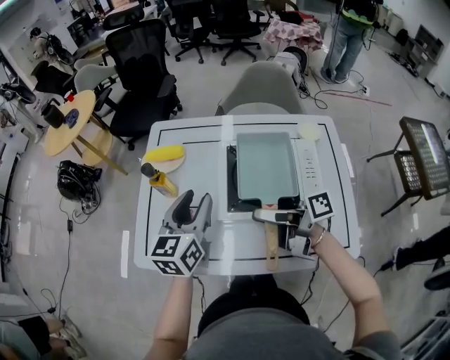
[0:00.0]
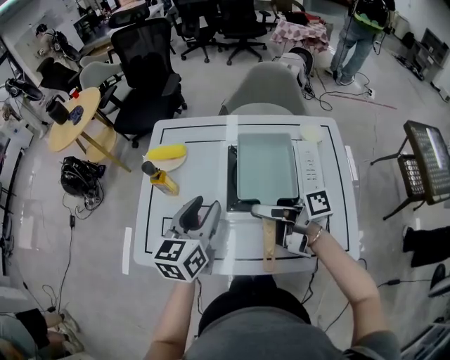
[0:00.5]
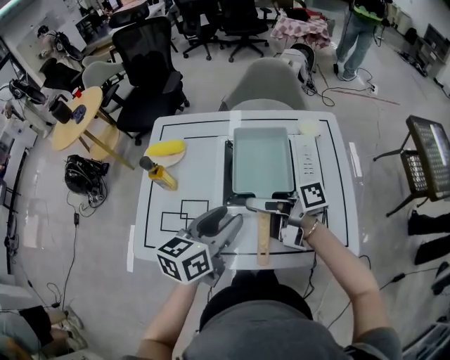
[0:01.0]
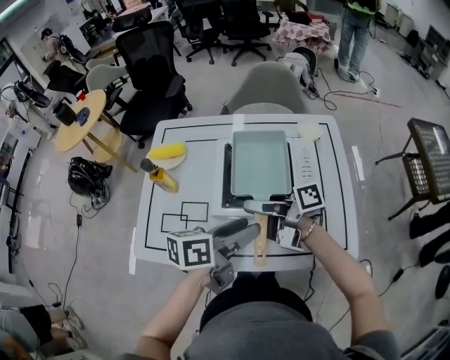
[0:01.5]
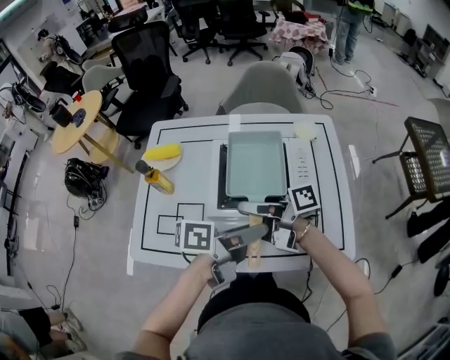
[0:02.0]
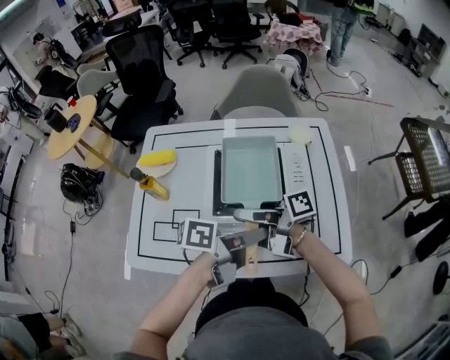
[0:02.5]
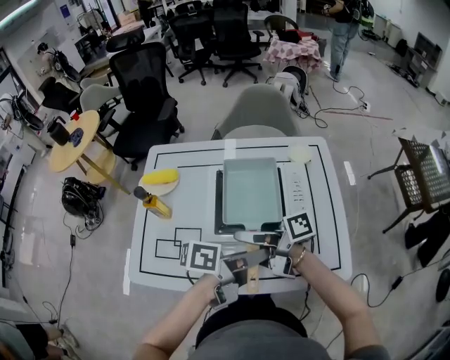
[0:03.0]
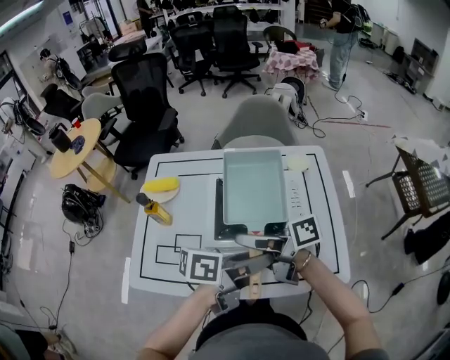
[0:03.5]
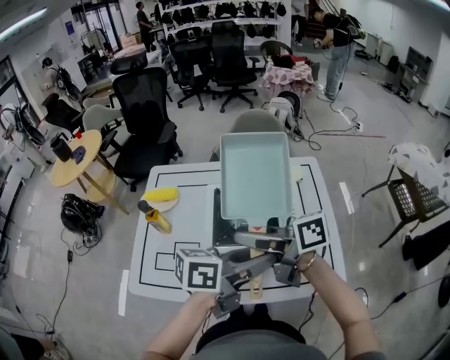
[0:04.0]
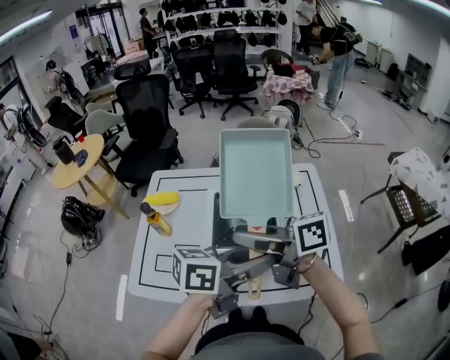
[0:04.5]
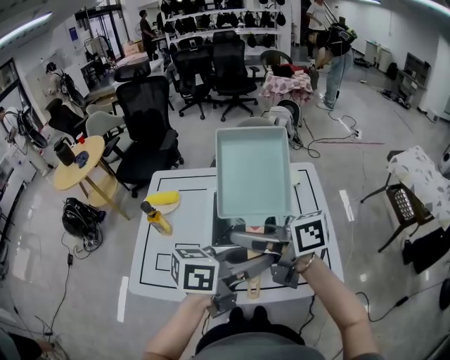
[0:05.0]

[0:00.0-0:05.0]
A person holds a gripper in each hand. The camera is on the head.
0:00.0 to 0:02.5: The right gripper closes up. Meanwhile the left gripper shifts by roughly 20 cm, and swivels some 80 degrees.
0:02.5 to 0:05.0: The grippers both shift upward by roughly 15 cm. The right gripper changes its angle by approximately 40 degrees; the left gripper changes its angle by some 40 degrees.

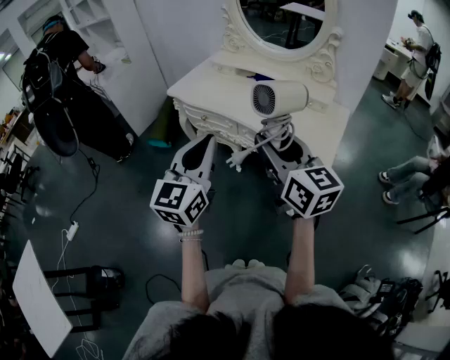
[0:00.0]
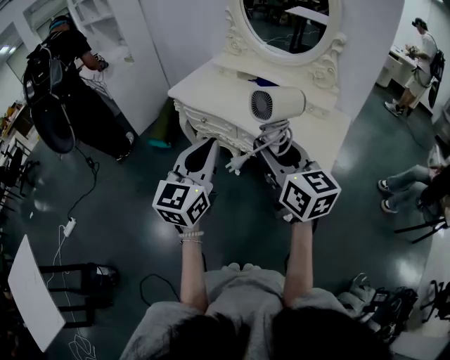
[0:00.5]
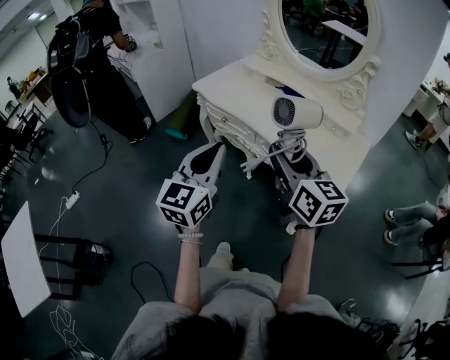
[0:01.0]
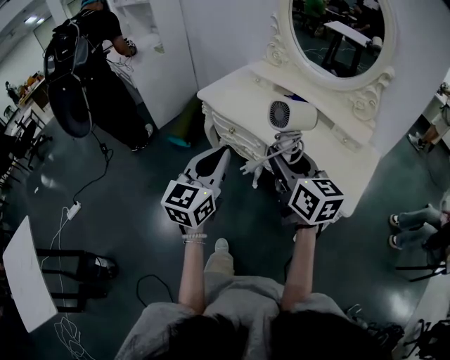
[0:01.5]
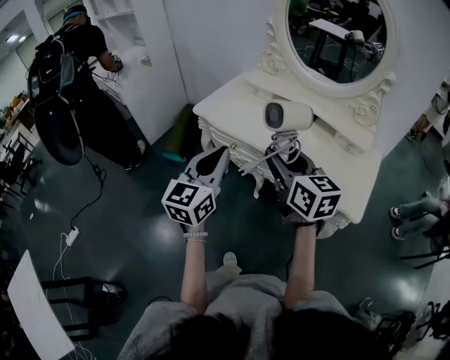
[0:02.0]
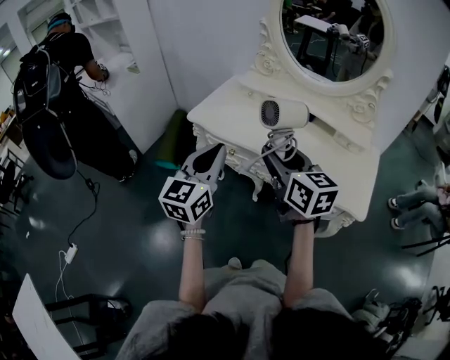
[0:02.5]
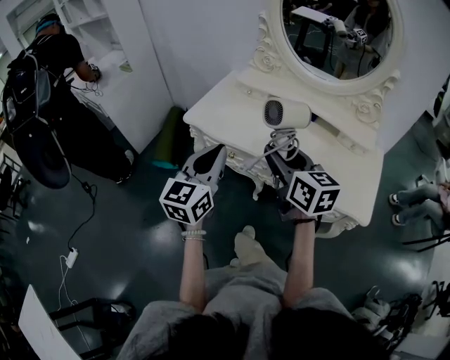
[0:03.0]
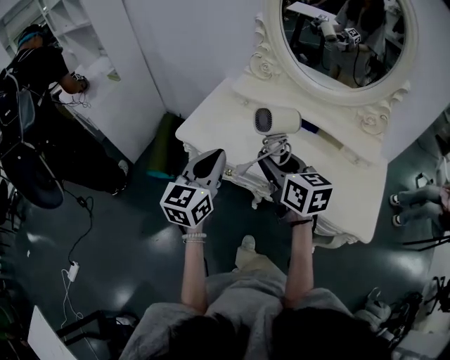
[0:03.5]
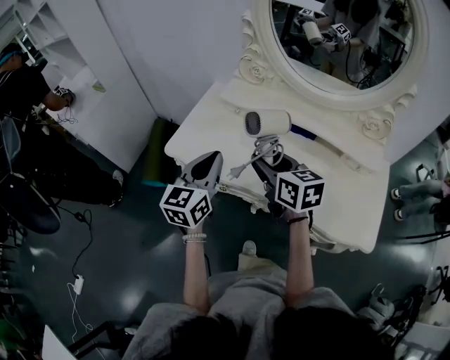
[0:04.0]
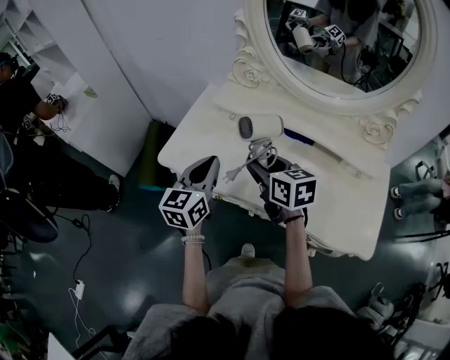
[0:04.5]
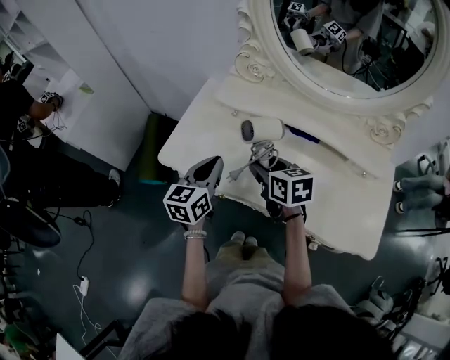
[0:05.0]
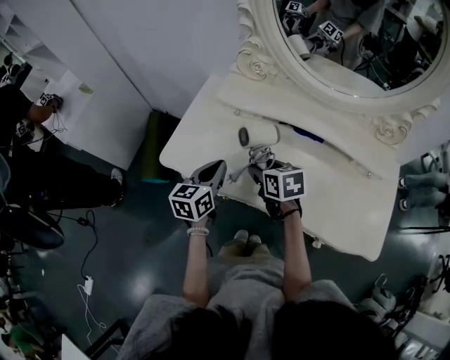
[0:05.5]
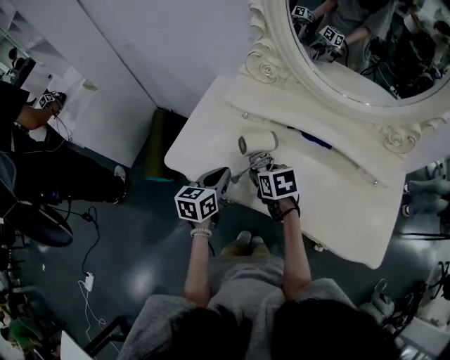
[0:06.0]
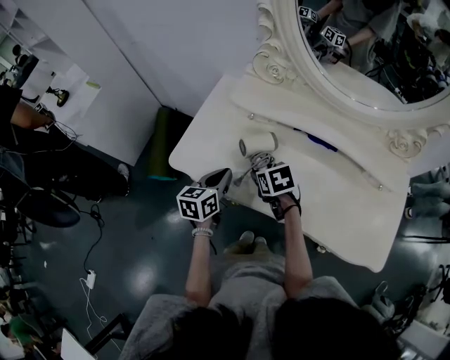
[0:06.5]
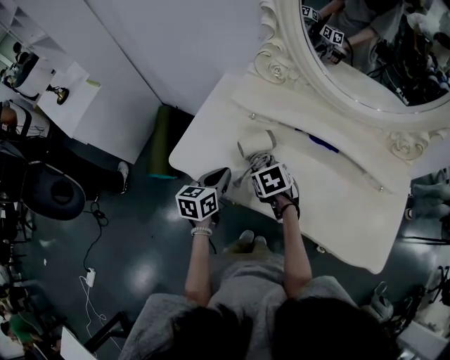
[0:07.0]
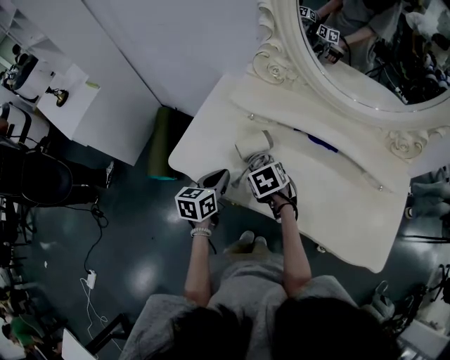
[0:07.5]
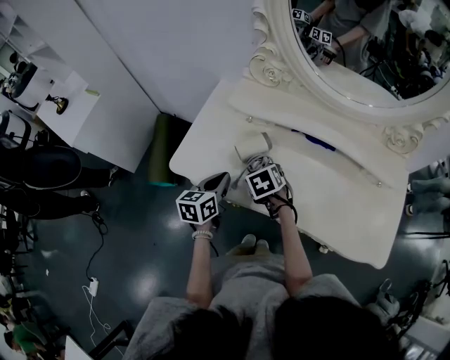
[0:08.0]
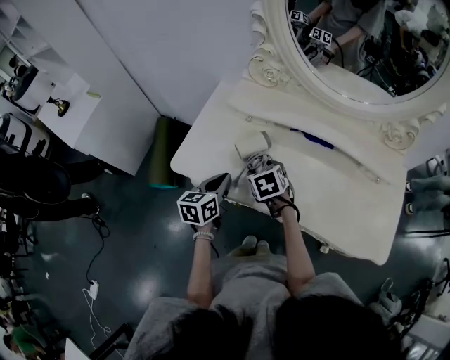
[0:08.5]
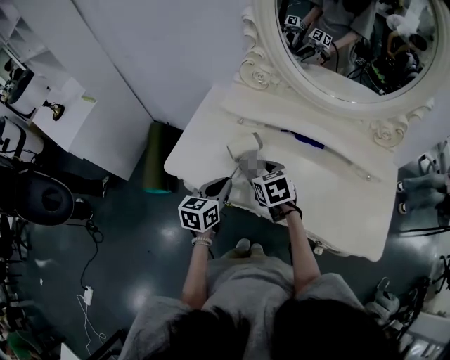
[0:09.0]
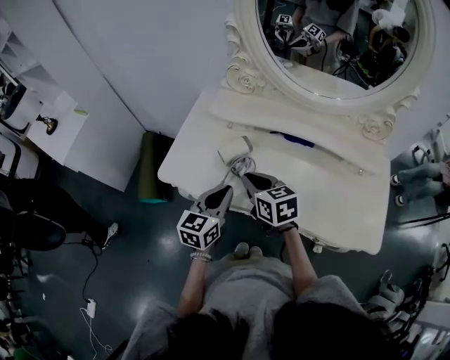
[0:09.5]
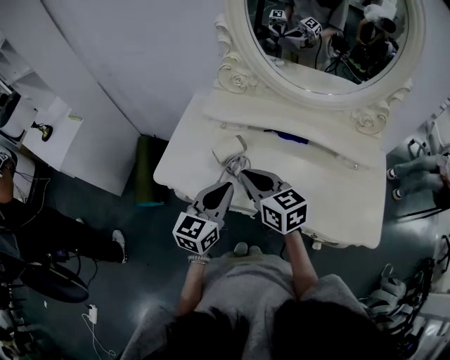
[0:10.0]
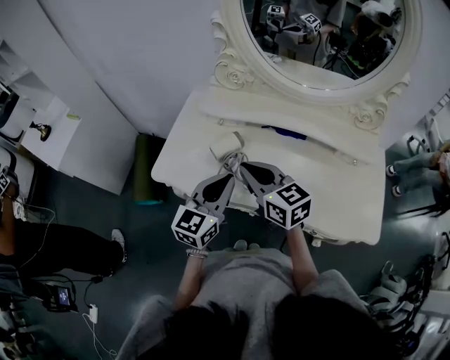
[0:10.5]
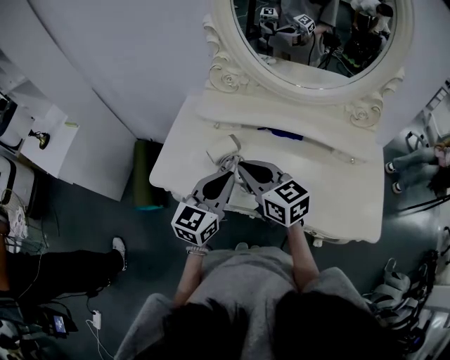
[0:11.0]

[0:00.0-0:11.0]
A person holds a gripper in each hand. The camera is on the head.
0:00.0 to 0:02.0: Both grippers travel together forward and to the left, some 20 cm.
0:02.0 to 0:03.5: The two grippers go about 20 cm forward.
0:03.5 to 0:05.5: The left gripper shifts roughly 25 cm forward and downward, and turns by roughly 20 degrees, while the right gripper travels downward and forward by about 25 cm, and swivels roughly 30 degrees.
0:05.5 to 0:07.5: The grippers both shift downward by about 5 cm. The right gripper turns by about 30 degrees.
0:07.5 to 0:09.0: The left gripper moves about 5 cm, while the right gripper heads upward, covering about 5 cm.
0:09.0 to 0:11.0: The left gripper shifts about 15 cm upward and to the right, and turns by roughly 30 degrees; the right gripper is displaced upward by roughly 15 cm, tilts its fingers some 30 degrees upward, and closes.

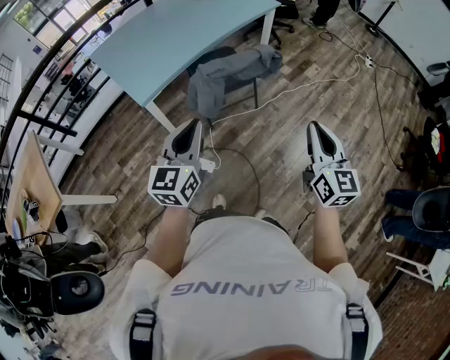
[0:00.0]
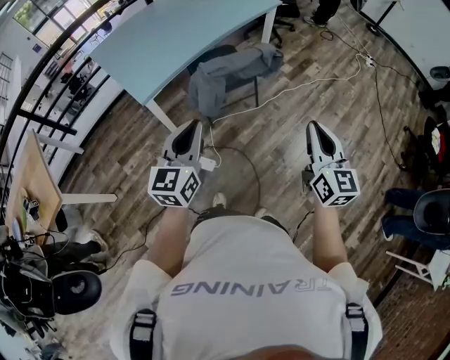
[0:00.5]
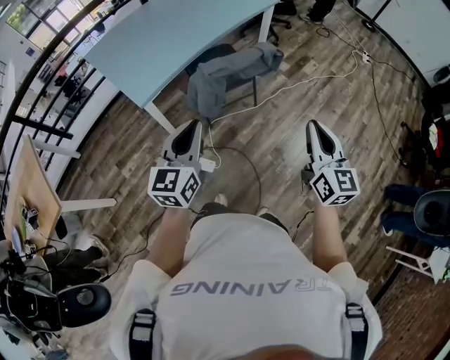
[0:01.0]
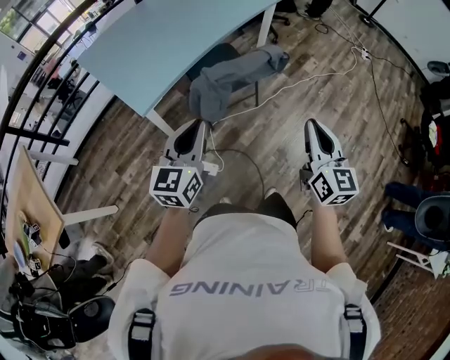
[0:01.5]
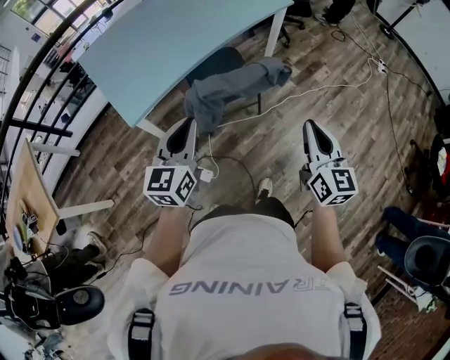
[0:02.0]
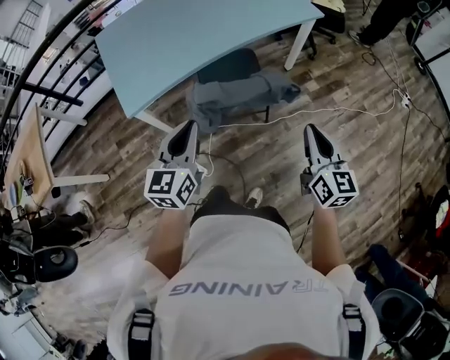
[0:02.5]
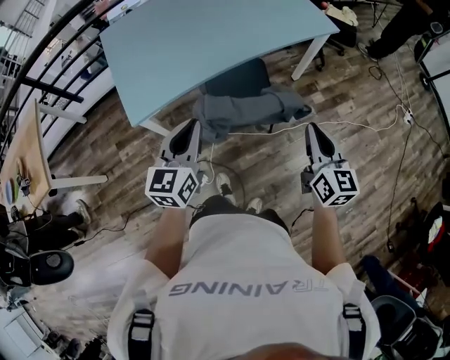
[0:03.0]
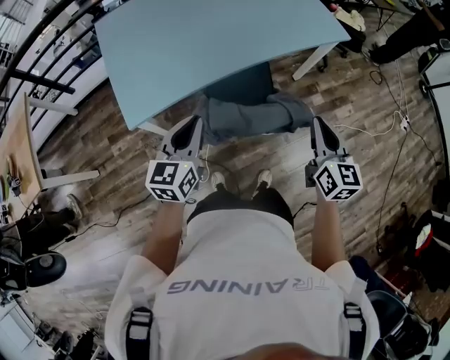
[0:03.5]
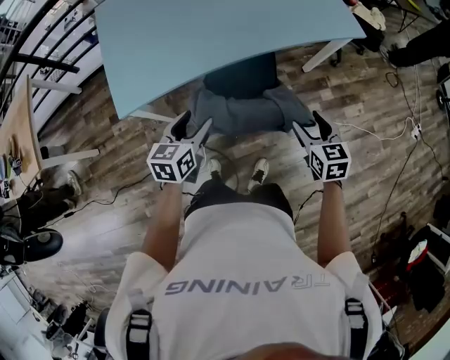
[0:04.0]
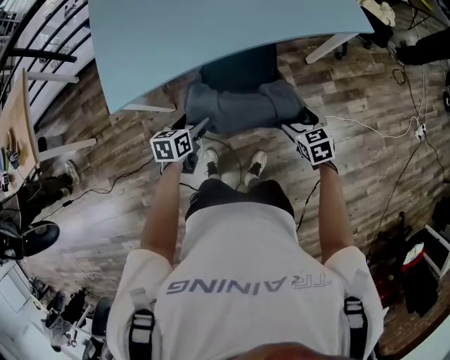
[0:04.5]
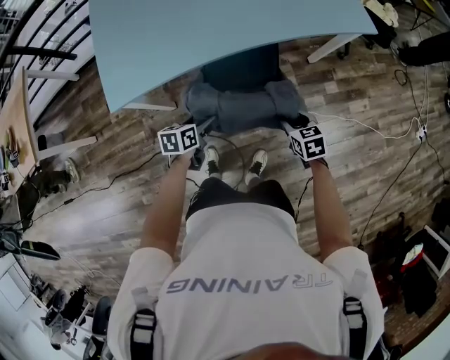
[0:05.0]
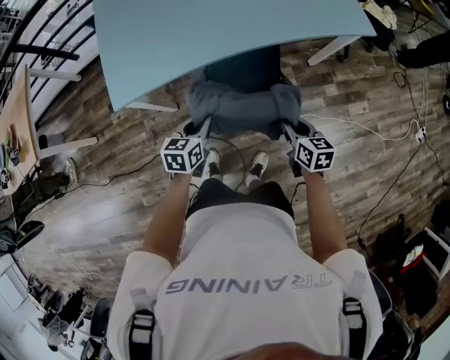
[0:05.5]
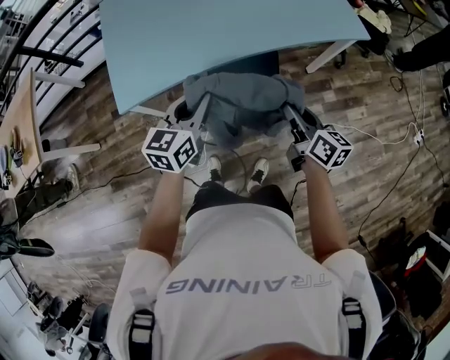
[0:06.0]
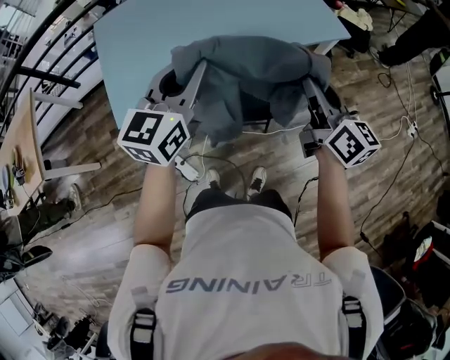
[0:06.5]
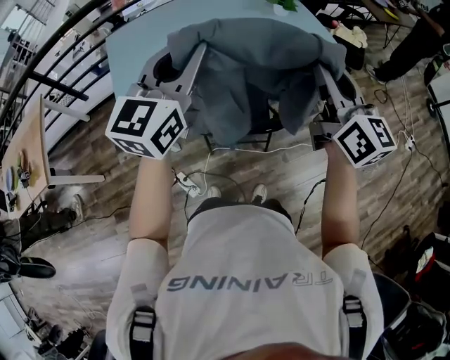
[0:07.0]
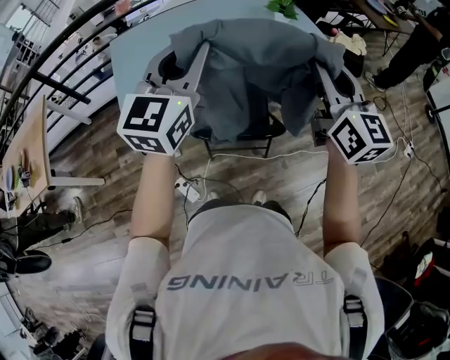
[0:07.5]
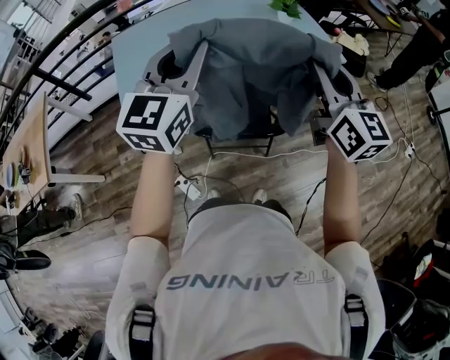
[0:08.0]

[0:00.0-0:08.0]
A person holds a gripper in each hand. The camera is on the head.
0:00.0 to 0:02.0: Both grippers move forward, roughly 20 cm.
0:02.0 to 0:04.0: The grippers both shift forward and downward by approximately 30 cm. The right gripper swivels some 40 degrees, and opens; the left gripper swivels some 30 degrees, and opens its fingers.
0:04.0 to 0:06.0: The left gripper travels downward and back again, roughly 15 cm each way, and closes its fingers, while the right gripper goes downward and returns, roughly 15 cm each way, changes its angle by approximately 40 degrees, and closes.
0:06.0 to 0:08.0: The grippers both shift upward by some 30 cm. The left gripper swivels approximately 30 degrees. The right gripper rotates approximately 40 degrees.

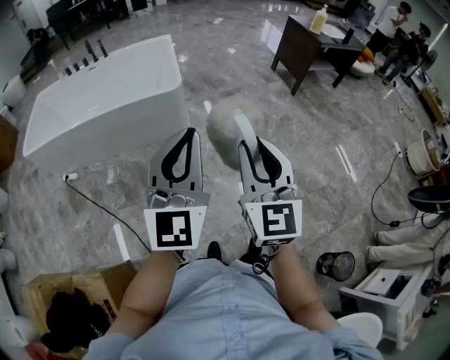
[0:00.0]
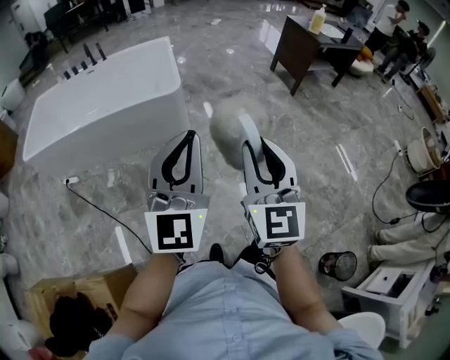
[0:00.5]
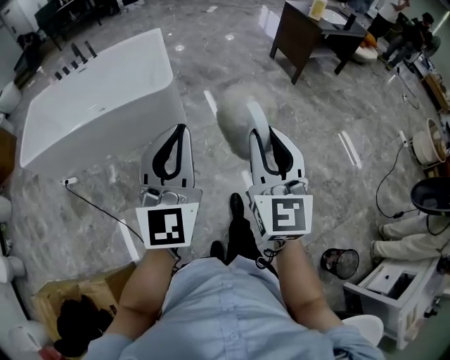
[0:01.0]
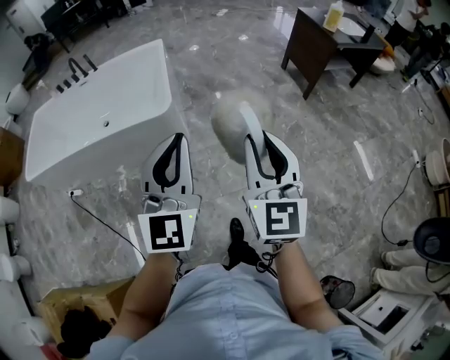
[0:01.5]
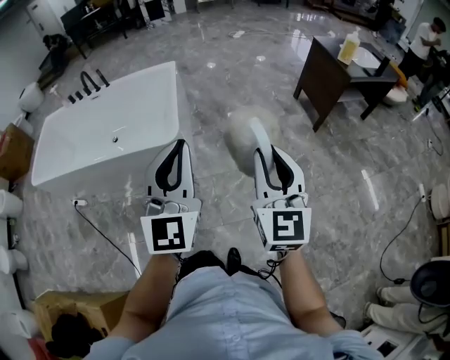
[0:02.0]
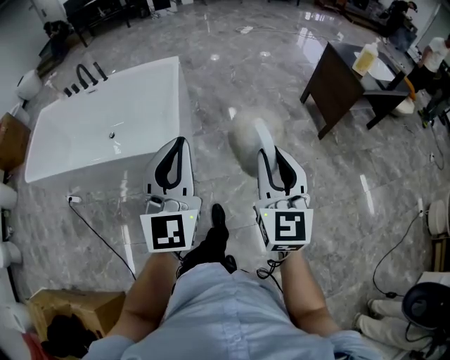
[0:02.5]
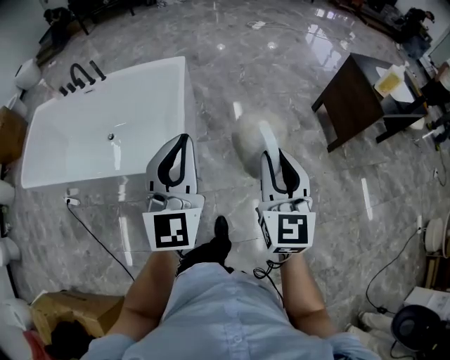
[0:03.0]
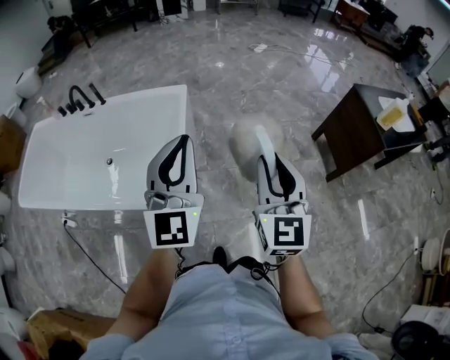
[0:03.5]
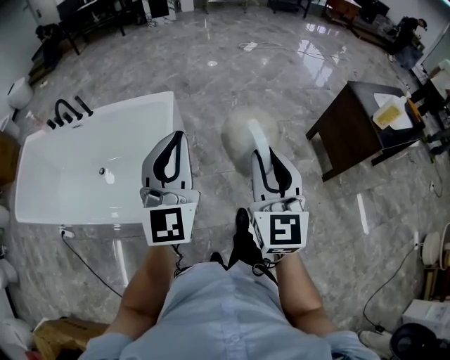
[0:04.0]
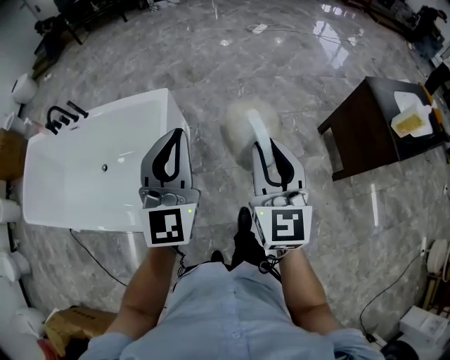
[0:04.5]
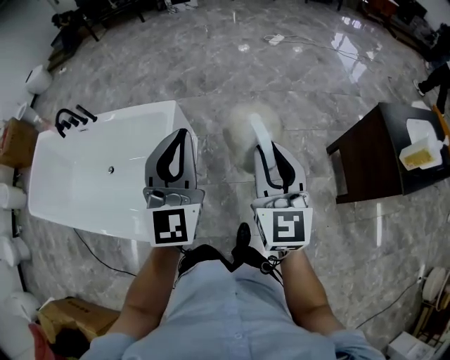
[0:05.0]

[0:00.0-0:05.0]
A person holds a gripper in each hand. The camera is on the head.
0:00.0 to 0:02.5: The pair of grippers is taken forward, approximately 50 cm.
0:02.5 to 0:05.0: The pair of grippers is taken forward, about 60 cm.
